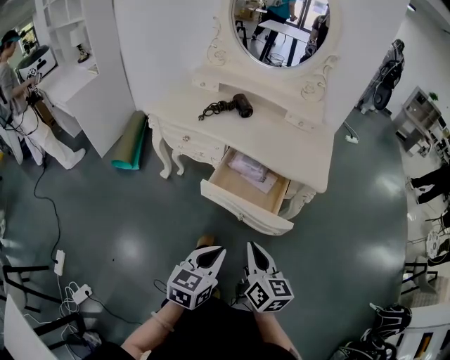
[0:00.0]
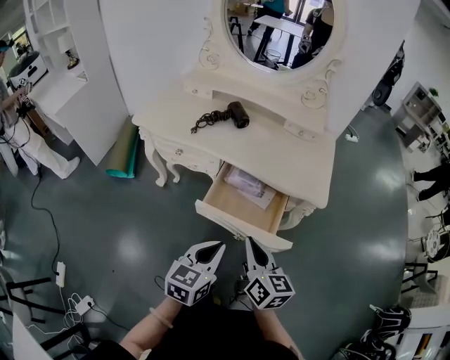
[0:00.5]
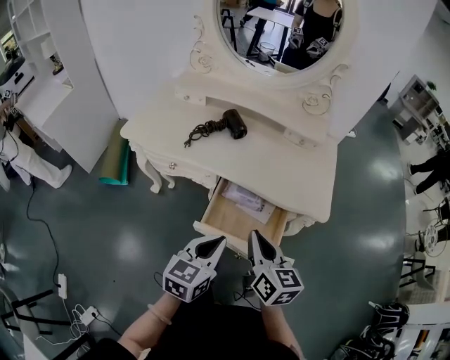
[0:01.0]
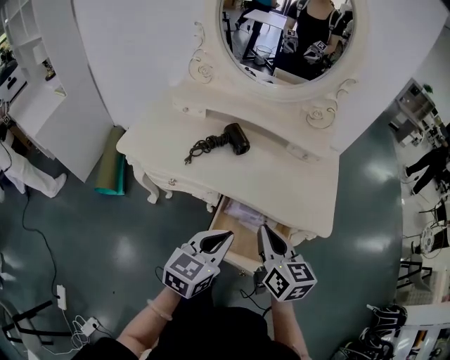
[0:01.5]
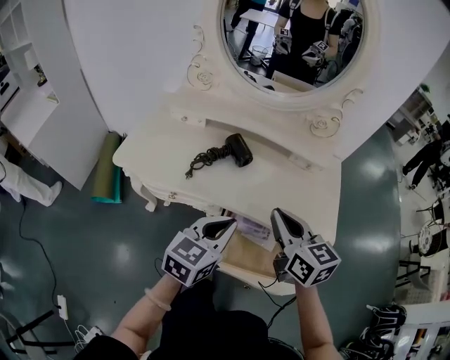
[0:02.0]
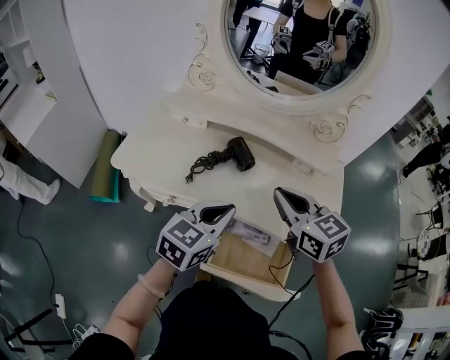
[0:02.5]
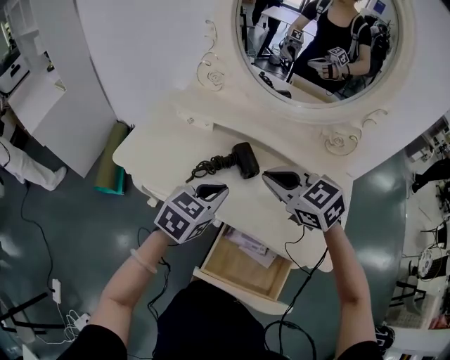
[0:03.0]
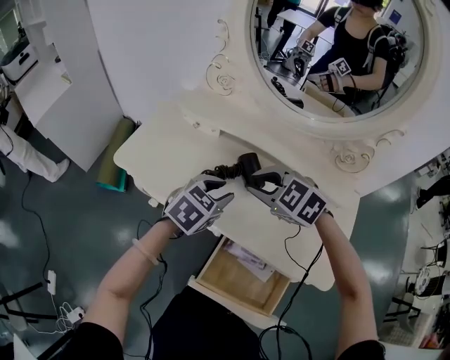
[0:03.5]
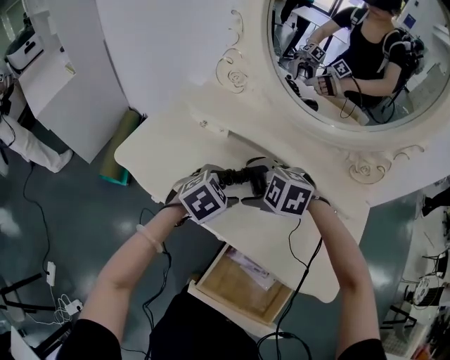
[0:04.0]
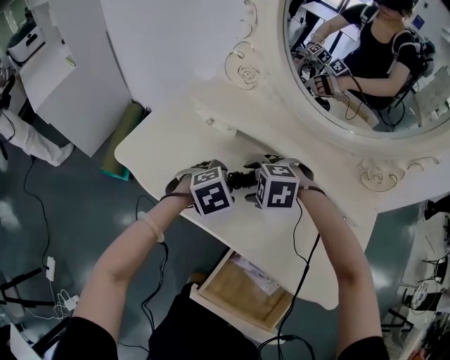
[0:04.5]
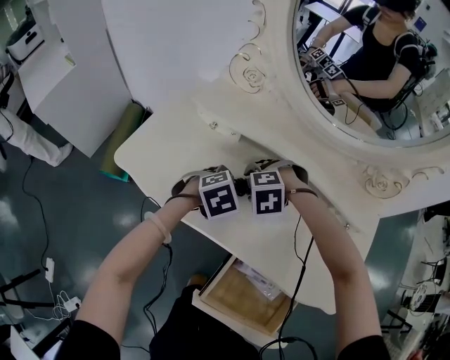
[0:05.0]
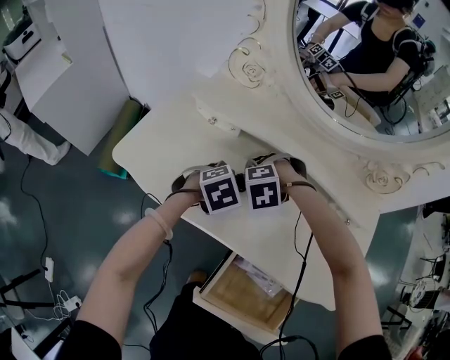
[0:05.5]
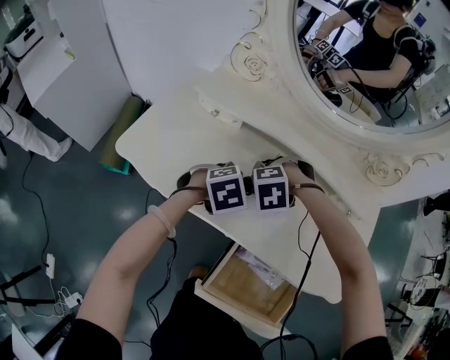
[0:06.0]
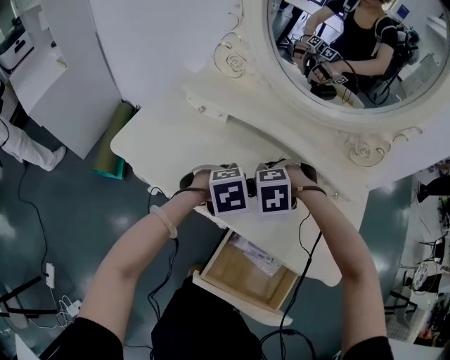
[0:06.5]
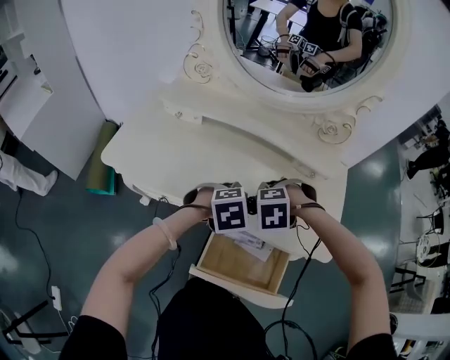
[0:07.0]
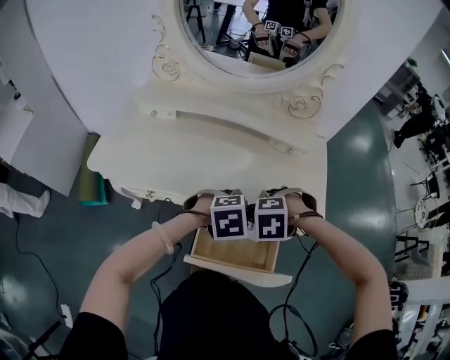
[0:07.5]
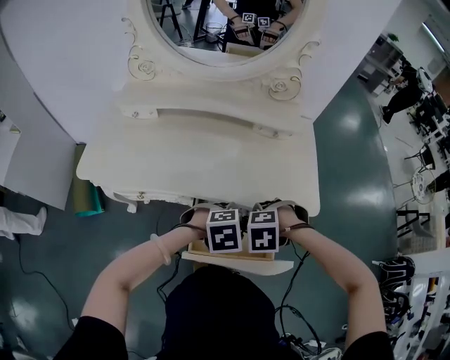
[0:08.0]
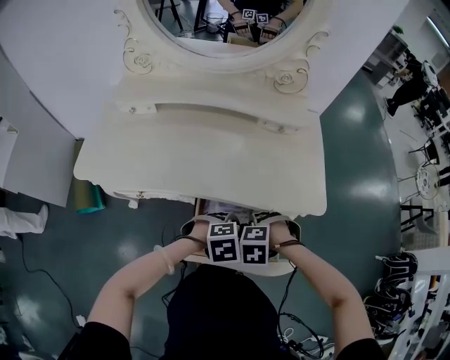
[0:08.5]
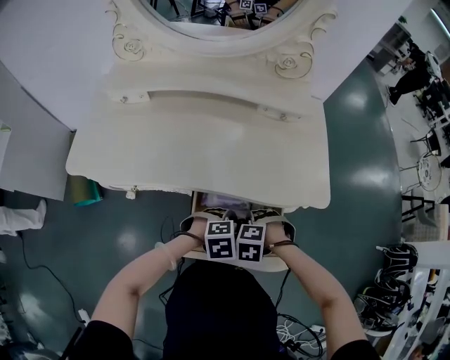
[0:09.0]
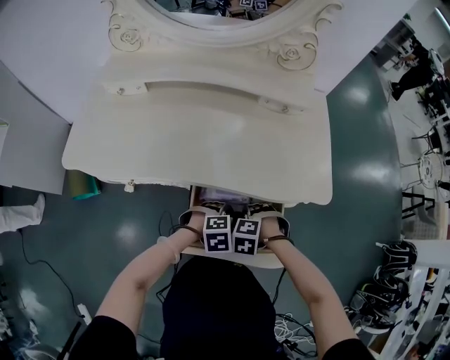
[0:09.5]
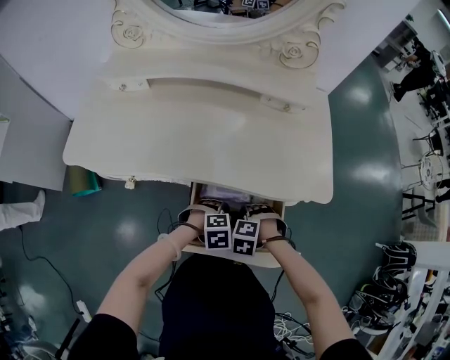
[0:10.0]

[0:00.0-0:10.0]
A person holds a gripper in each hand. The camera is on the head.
0:00.0 to 0:02.0: Both grippers travel together forward, approximately 35 cm.
0:02.0 to 0:04.0: The right gripper ends up about 25 cm from where it was, tips its fingers downward by about 40 degrees, and opens its fingers; the left gripper moves roughly 25 cm, points its fingers roughly 30 degrees further downward, and opens.
0:04.0 to 0:06.0: The left gripper goes about 5 cm downward, and turns by some 20 degrees. The right gripper moves downward, some 10 cm, and changes its angle by roughly 30 degrees.
0:06.0 to 0:08.0: The right gripper ends up roughly 35 cm from where it was, and turns by some 30 degrees. The left gripper shifts by roughly 30 cm, and changes its angle by about 30 degrees.
0:08.0 to 0:10.0: The two grippers go roughly 15 cm downward.

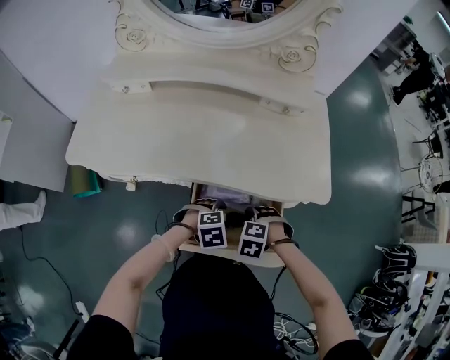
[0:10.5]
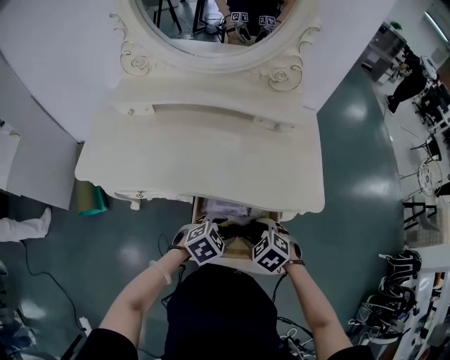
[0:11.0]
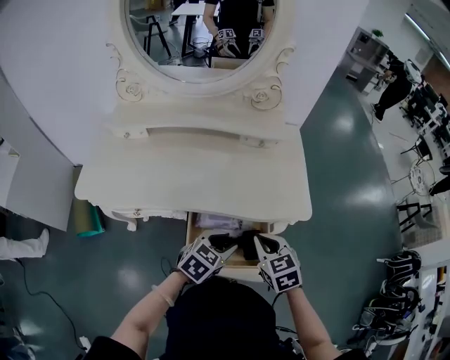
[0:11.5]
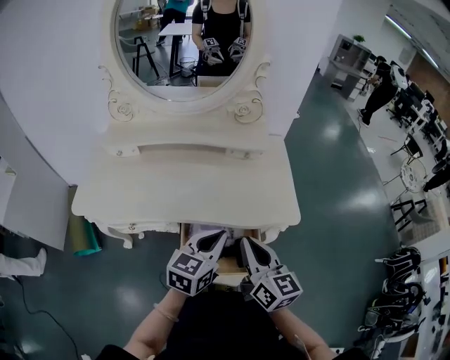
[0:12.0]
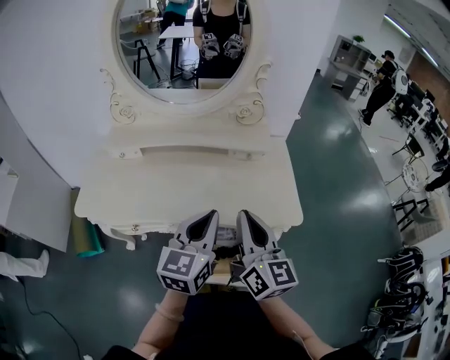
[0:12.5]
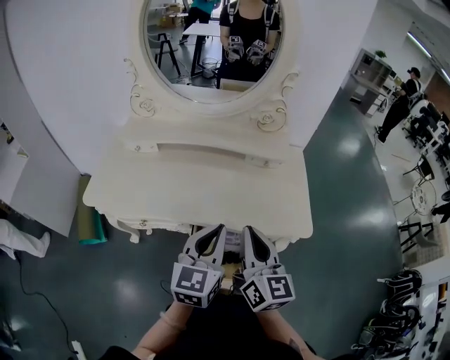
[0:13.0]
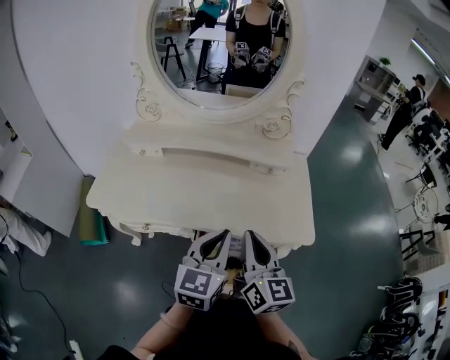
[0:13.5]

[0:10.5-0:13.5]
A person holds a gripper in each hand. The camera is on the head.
0:10.5 to 0:12.0: The two grippers go some 25 cm upward. The right gripper angles its fingers upward, by about 80 degrees, and closes. Meanwhile the left gripper angles its fingers upward, by roughly 50 degrees, and closes its fingers.
0:12.0 to 0:13.5: The left gripper moves upward and to the left, about 10 cm, and swivels approximately 20 degrees. Meanwhile the right gripper shifts roughly 5 cm to the left.

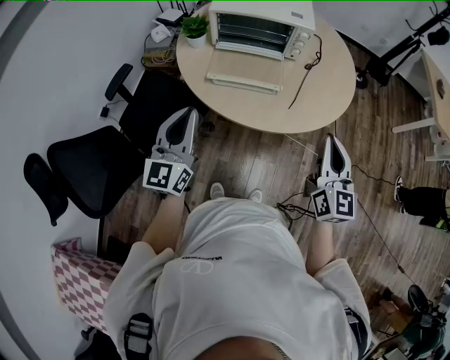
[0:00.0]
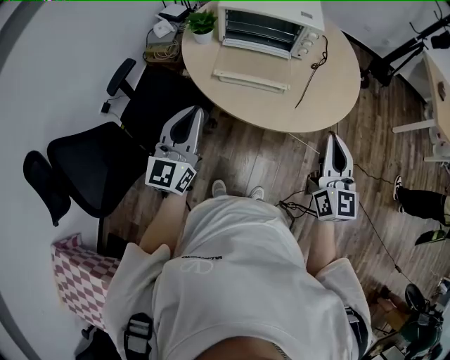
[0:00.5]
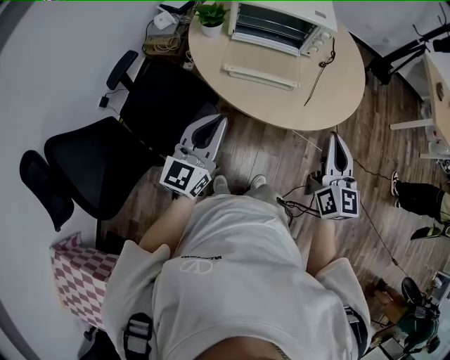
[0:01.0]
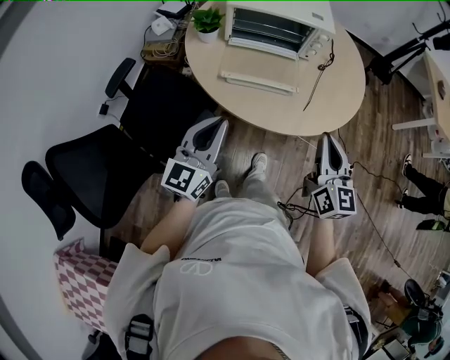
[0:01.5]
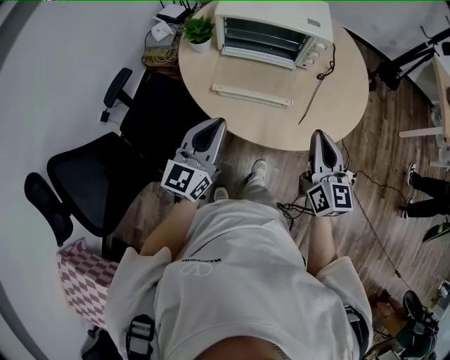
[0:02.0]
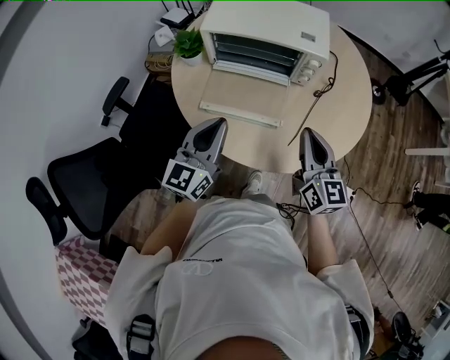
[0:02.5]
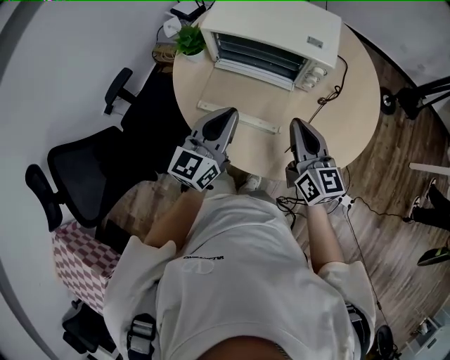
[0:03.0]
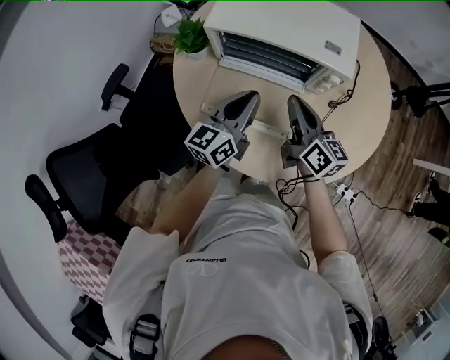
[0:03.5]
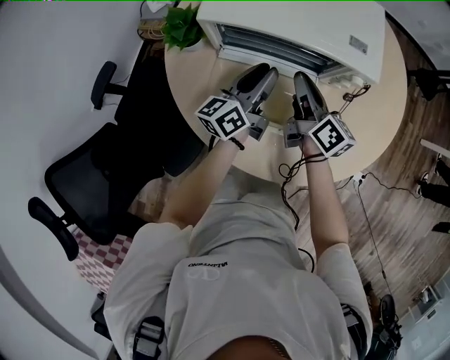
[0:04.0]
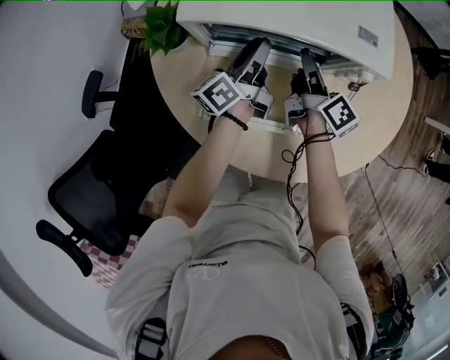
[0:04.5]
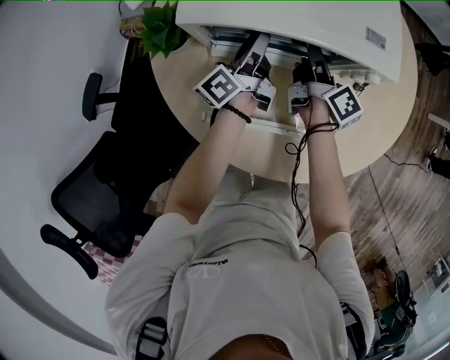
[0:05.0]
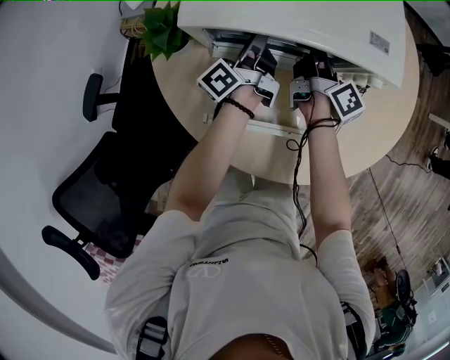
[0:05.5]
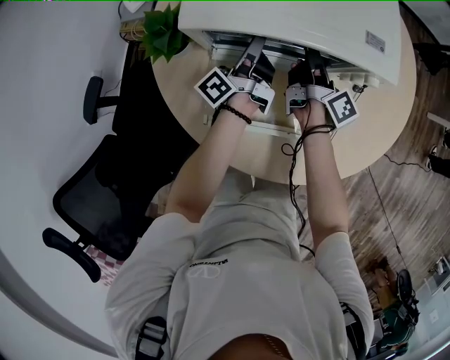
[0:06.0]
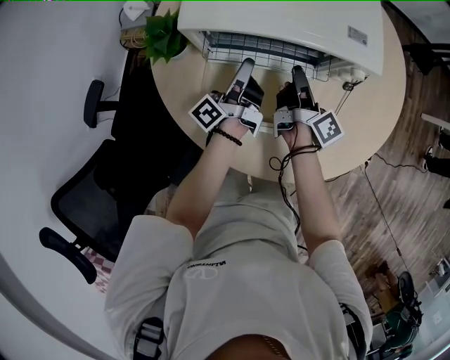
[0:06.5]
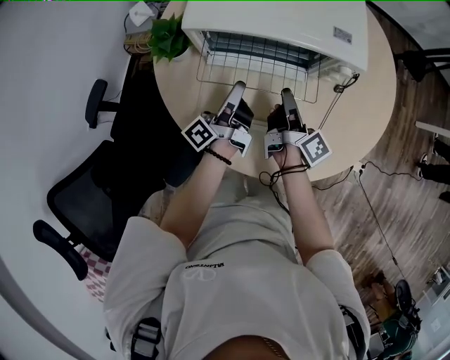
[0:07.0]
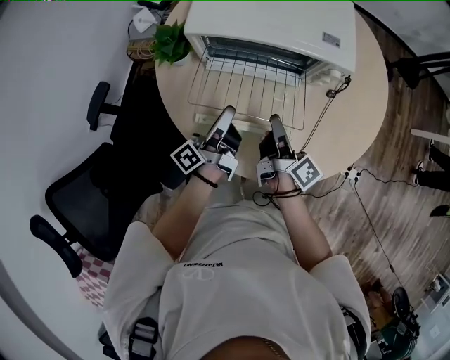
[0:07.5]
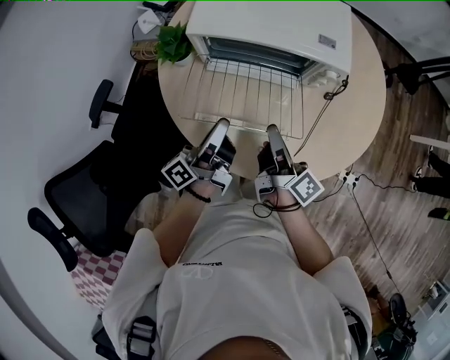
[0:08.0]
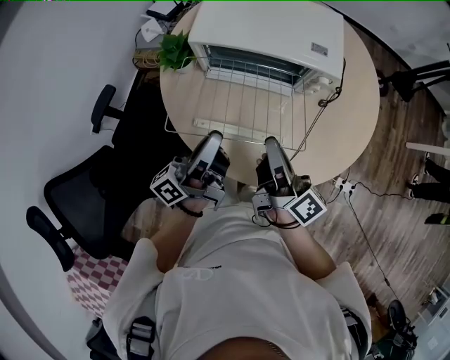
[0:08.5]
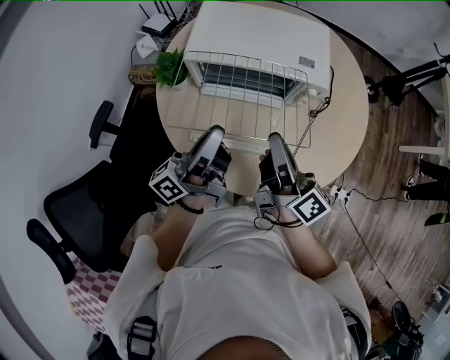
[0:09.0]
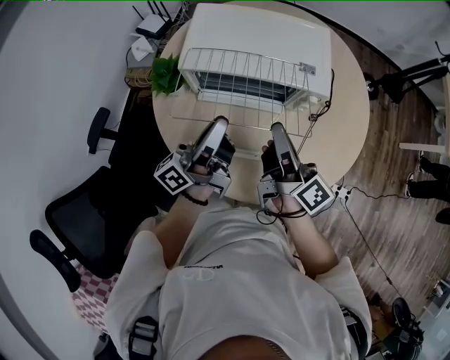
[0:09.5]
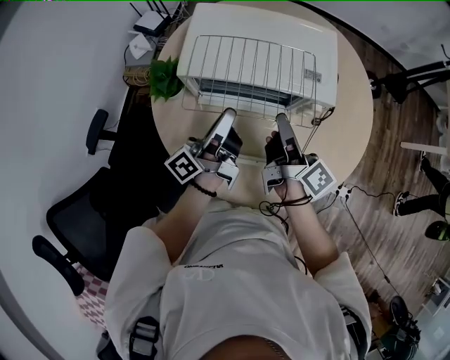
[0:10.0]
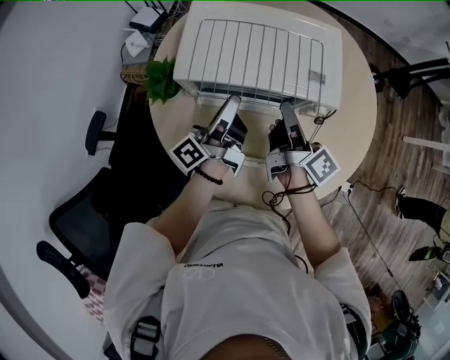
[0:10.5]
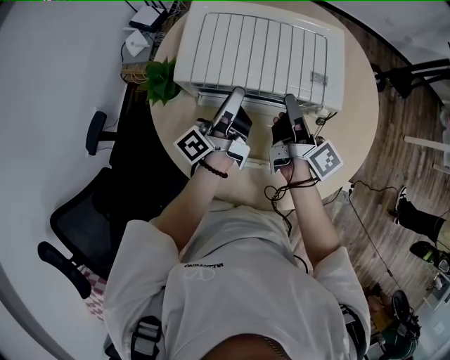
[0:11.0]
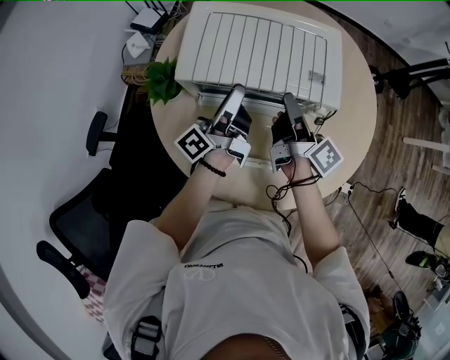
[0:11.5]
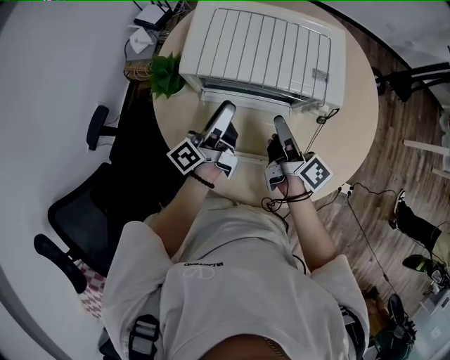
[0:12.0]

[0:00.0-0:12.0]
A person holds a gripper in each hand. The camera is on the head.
0:00.0 to 0:02.0: The right gripper goes about 15 cm forward, to the left and downward; the left gripper is displaced forward and downward by approximately 10 cm.
0:02.0 to 0:04.0: The grippers both shift forward and downward by some 40 cm. The left gripper swivels some 40 degrees, and opens its fingers. The right gripper turns by about 40 degrees.
0:04.0 to 0:06.0: The two grippers go approximately 10 cm forward and downward. The right gripper changes its angle by approximately 40 degrees. Meanwhile the left gripper swivels about 40 degrees, and closes up.
0:06.0 to 0:08.0: Both grippers move backward and upward, some 25 cm.
0:08.0 to 0:10.0: The grippers both shift forward and upward by roughly 15 cm.
0:10.0 to 0:12.0: The two grippers go approximately 5 cm downward. The right gripper opens up; the left gripper opens.

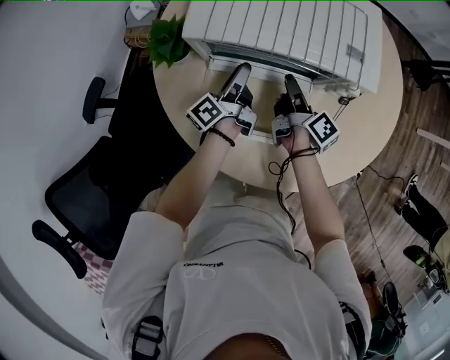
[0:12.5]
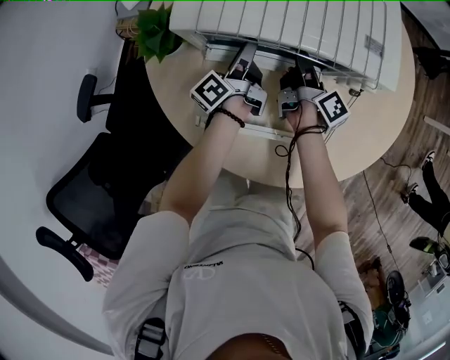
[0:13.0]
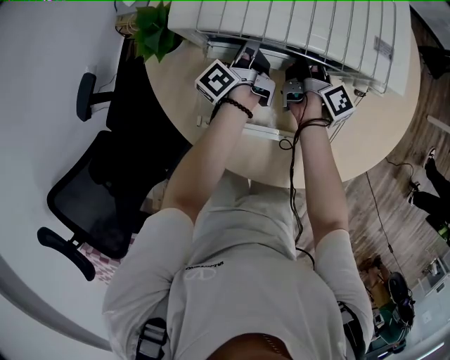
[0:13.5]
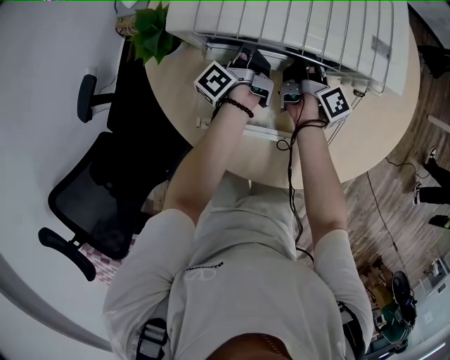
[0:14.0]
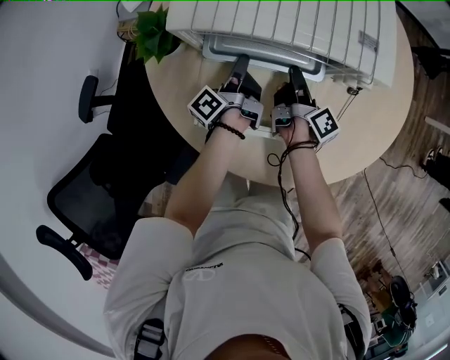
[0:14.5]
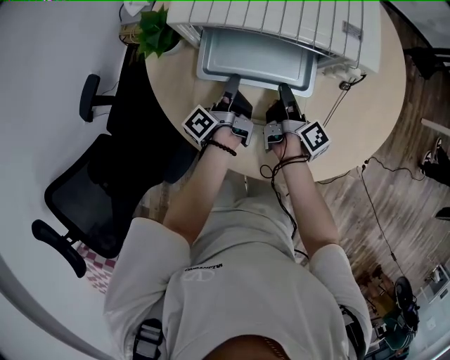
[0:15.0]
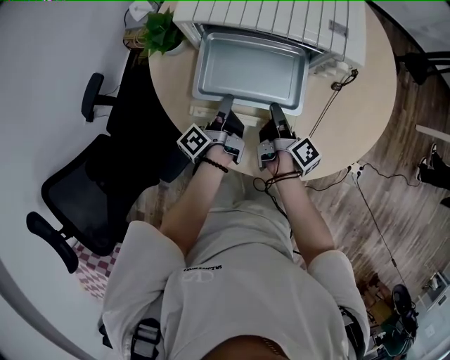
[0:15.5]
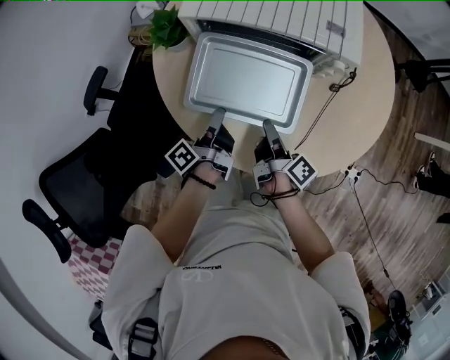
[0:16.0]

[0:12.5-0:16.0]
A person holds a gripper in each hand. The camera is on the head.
0:12.5 to 0:14.5: The left gripper closes its fingers.
0:14.5 to 0:16.0: Both grippers travel together backward, approximately 20 cm.
